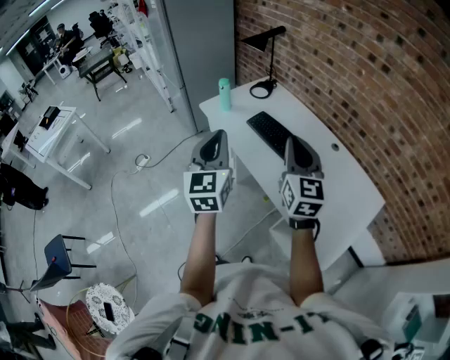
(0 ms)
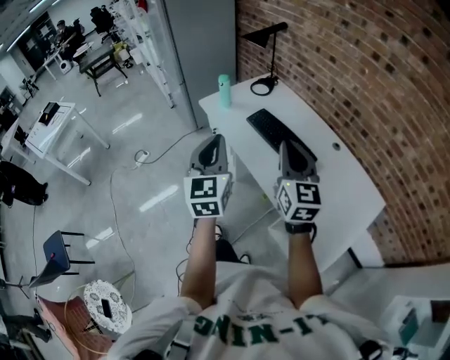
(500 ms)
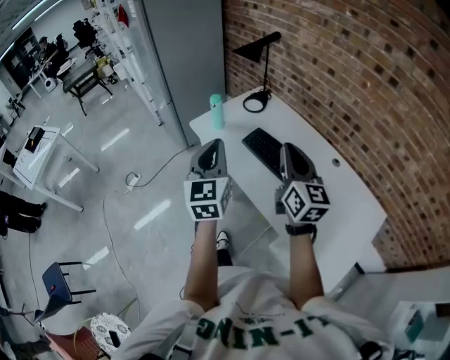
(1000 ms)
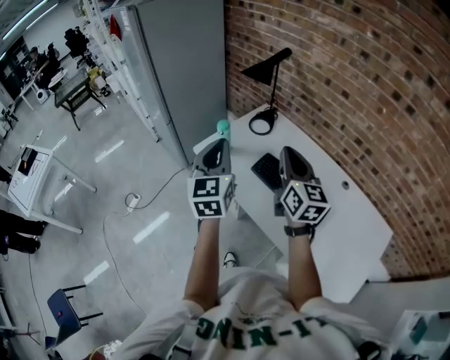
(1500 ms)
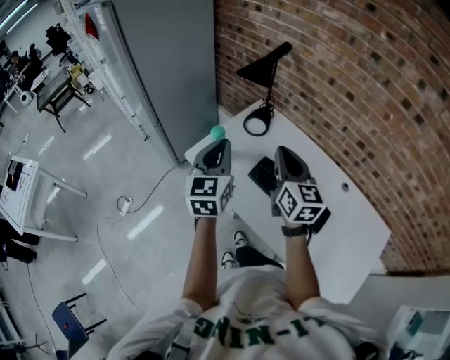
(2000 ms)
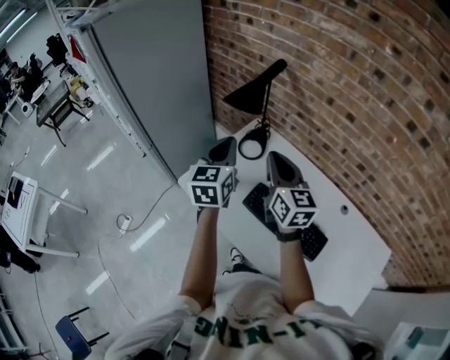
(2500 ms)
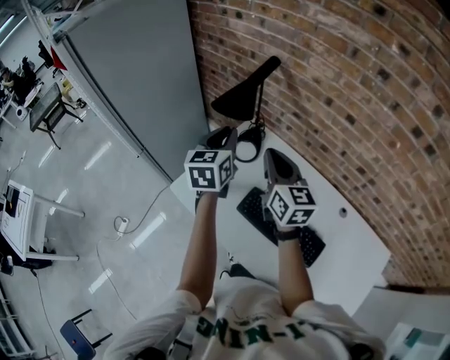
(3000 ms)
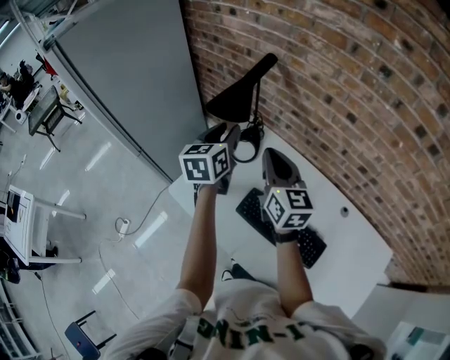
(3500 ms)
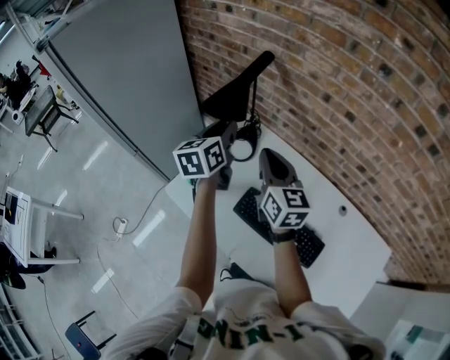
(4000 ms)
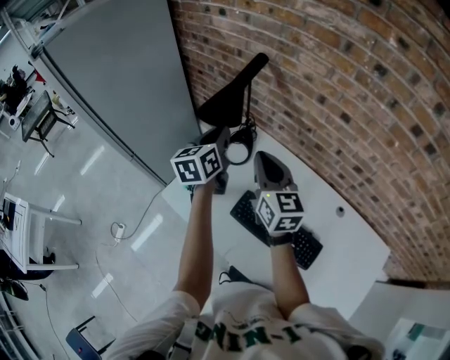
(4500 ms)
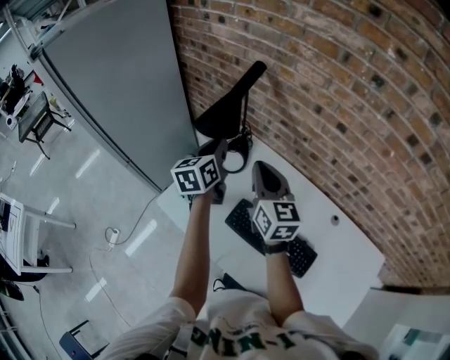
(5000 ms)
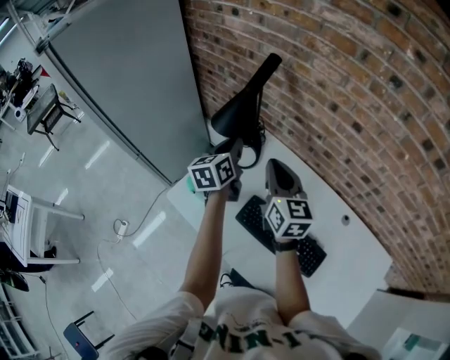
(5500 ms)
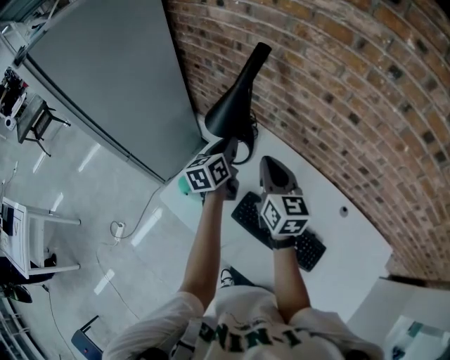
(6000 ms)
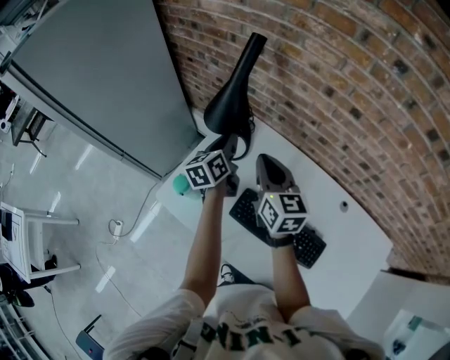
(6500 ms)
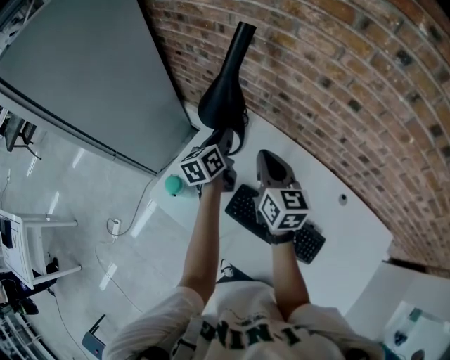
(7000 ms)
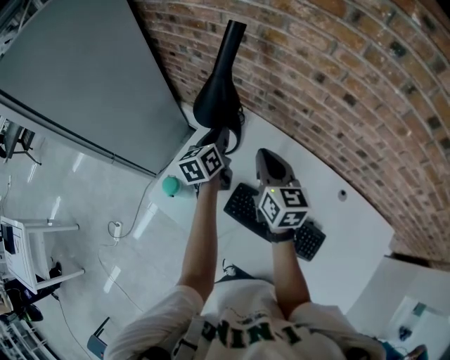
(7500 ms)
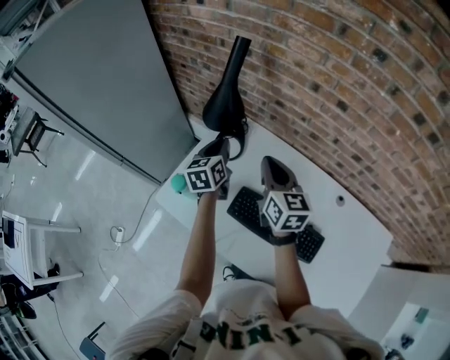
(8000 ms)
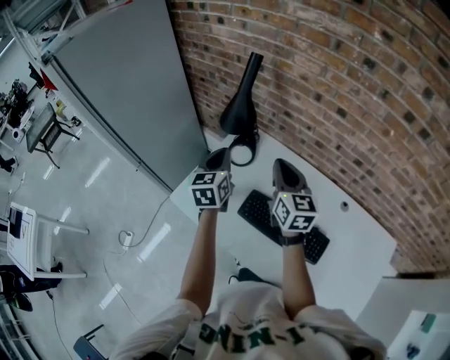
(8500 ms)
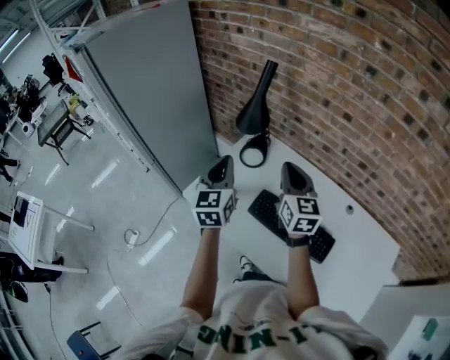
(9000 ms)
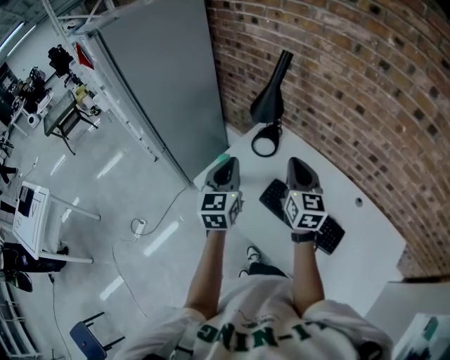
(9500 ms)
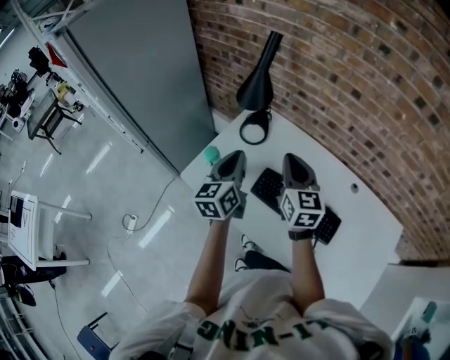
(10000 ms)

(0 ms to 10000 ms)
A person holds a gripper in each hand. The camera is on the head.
0 ms - 2000 ms: The two grippers go roughly 35 cm forward.
2000 ms - 4000 ms: Both grippers travel together forward, about 20 cm. The left gripper swivels roughly 30 degrees, and opens its fingers.
4000 ms - 6000 ms: The right gripper changes place by some 5 cm, while the left gripper travels downward by roughly 10 cm.
8000 ms - 10000 ms: The right gripper is displaced backward by some 10 cm; the left gripper is displaced backward and upward by approximately 20 cm.

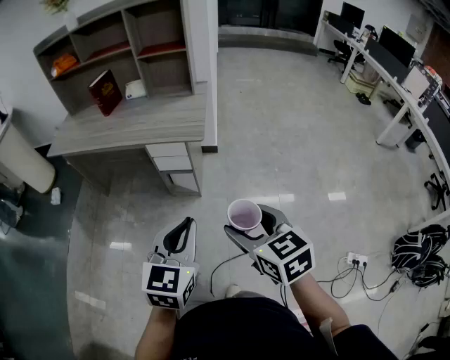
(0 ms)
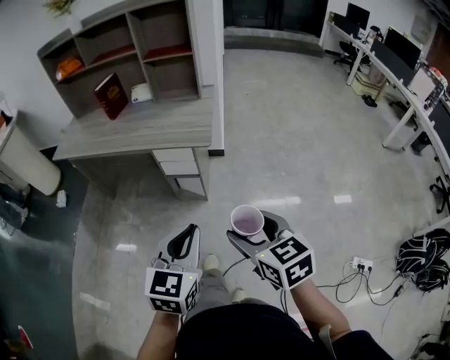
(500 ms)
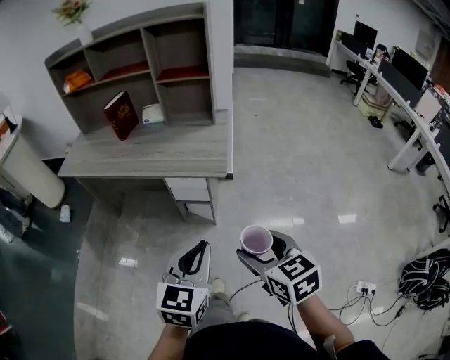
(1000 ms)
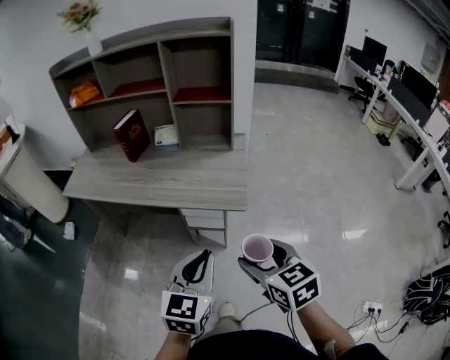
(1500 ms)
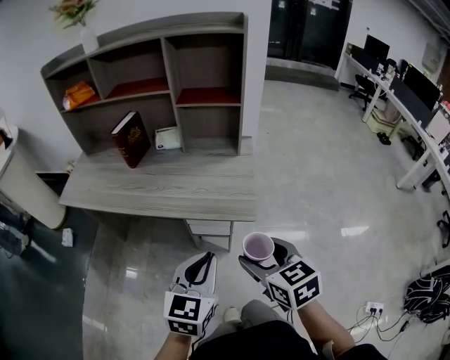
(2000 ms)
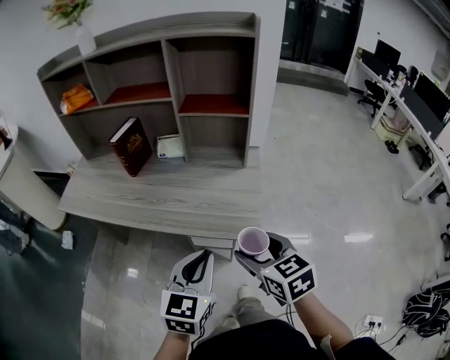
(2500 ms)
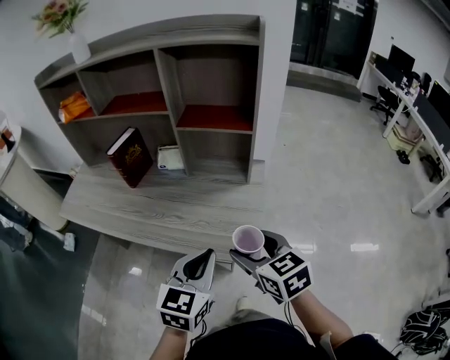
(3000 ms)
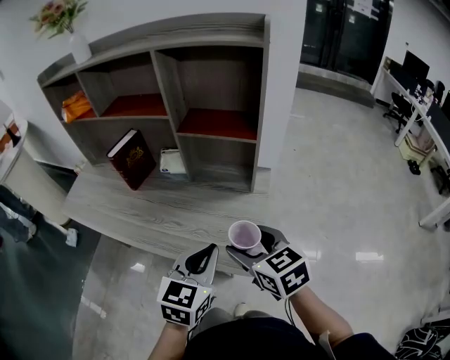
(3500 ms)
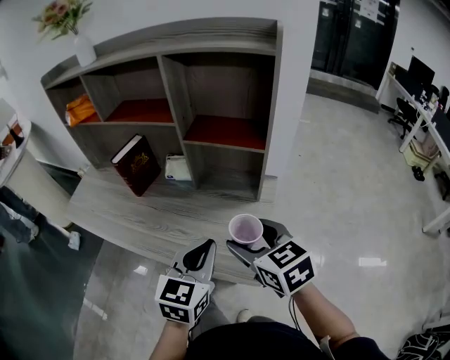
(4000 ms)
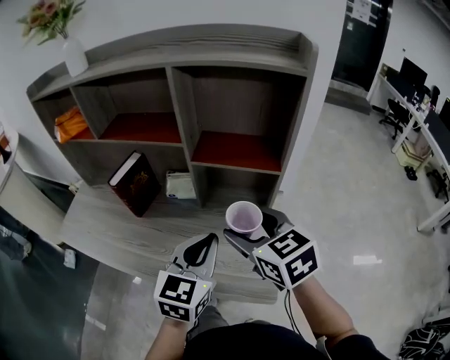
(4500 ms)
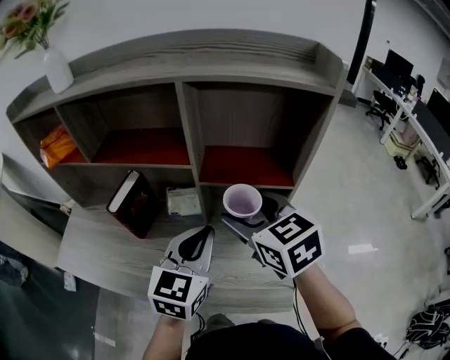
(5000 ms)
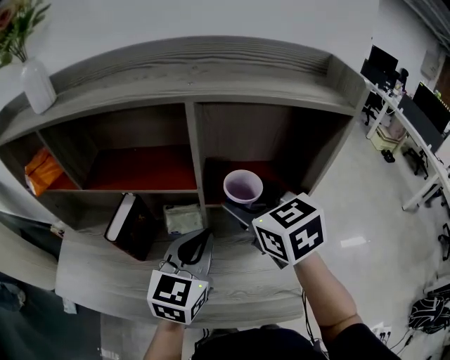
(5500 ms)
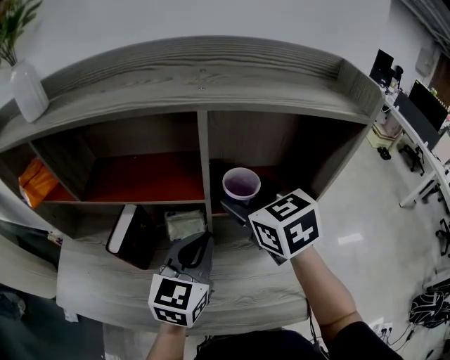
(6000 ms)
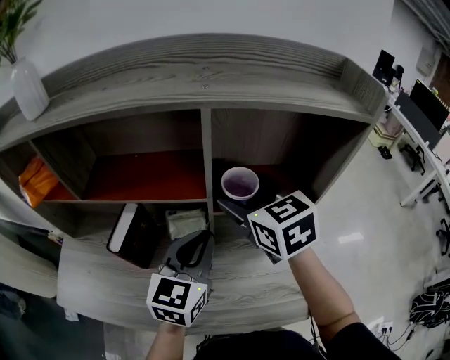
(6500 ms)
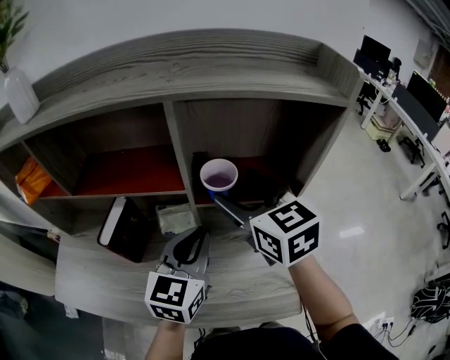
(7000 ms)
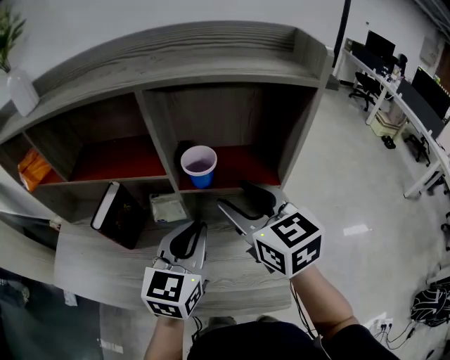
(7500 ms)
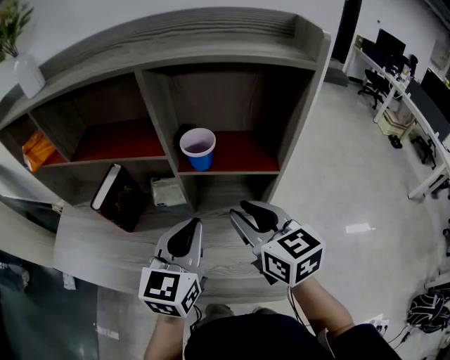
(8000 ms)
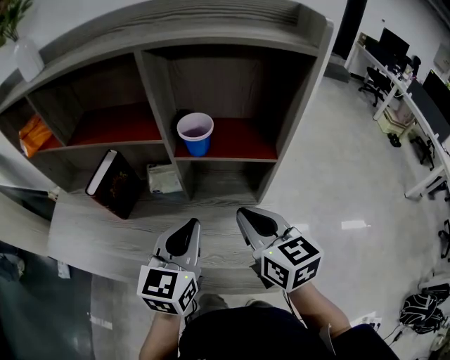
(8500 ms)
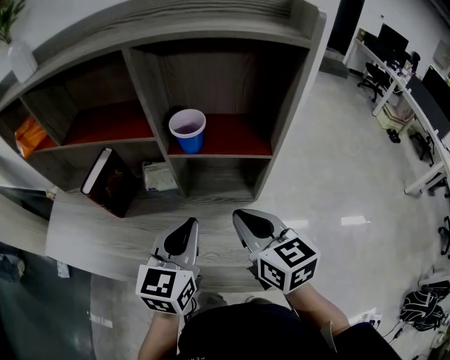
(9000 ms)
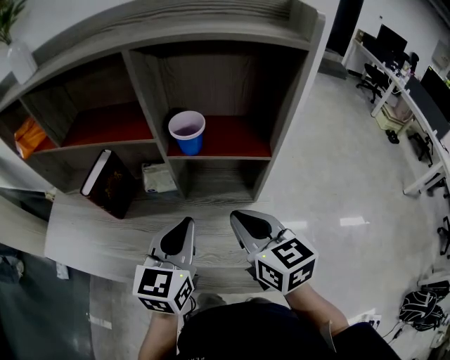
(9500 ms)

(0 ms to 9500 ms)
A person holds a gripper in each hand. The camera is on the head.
0 ms - 2000 ms: The left gripper shifts approximately 25 cm forward. Meanwhile the right gripper heads forward and to the left, covering roughly 30 cm.
2000 ms - 4000 ms: Both grippers travel together forward, approximately 25 cm.
4000 ms - 5500 ms: The right gripper goes some 30 cm forward and upward. Meanwhile the left gripper shifts about 25 cm forward and to the left.
5500 ms - 7500 ms: The right gripper travels to the right by some 5 cm, while the left gripper moves some 5 cm.
7500 ms - 9500 ms: The left gripper is displaced backward by approximately 5 cm. The right gripper goes some 15 cm downward and backward, and closes its fingers.

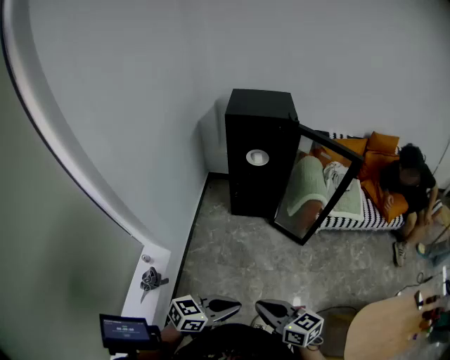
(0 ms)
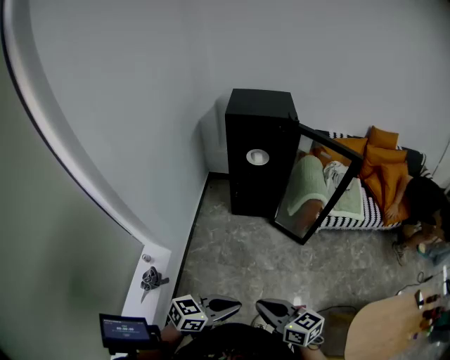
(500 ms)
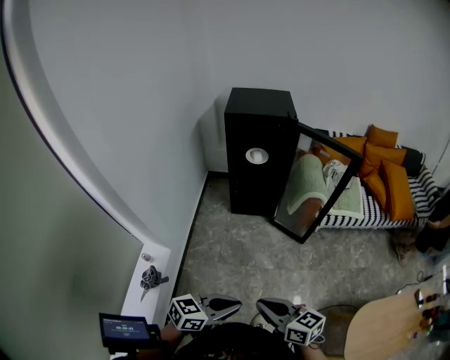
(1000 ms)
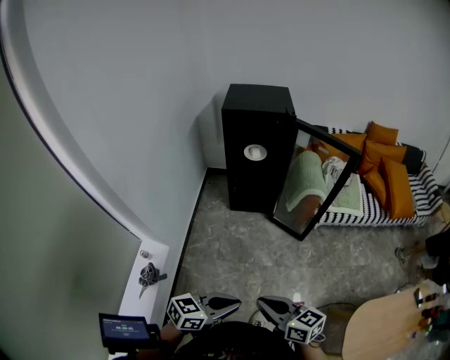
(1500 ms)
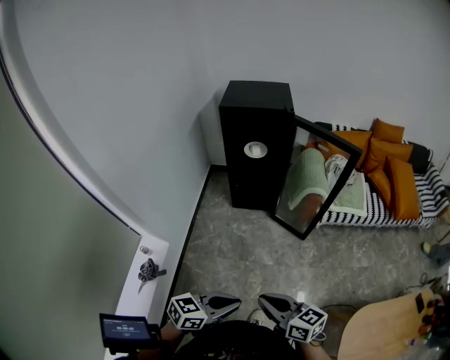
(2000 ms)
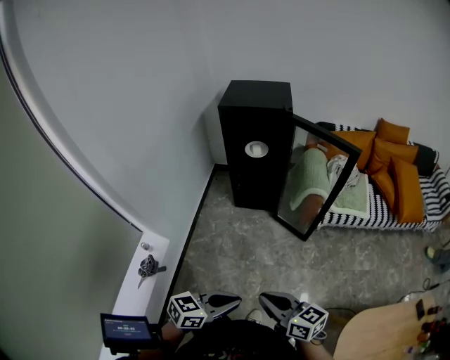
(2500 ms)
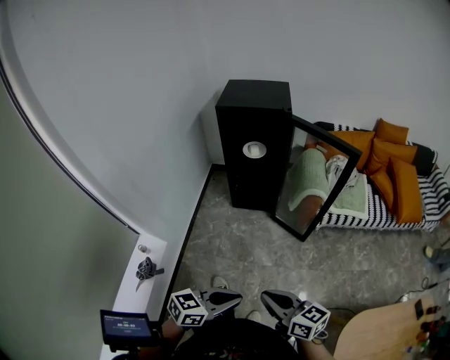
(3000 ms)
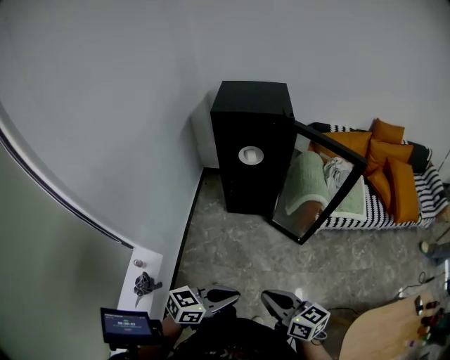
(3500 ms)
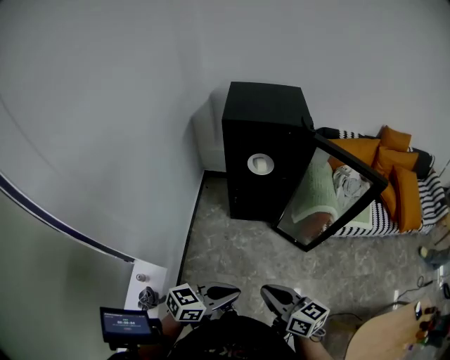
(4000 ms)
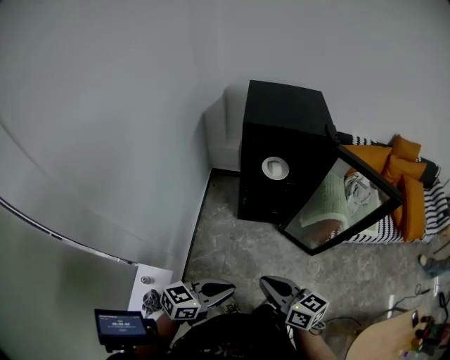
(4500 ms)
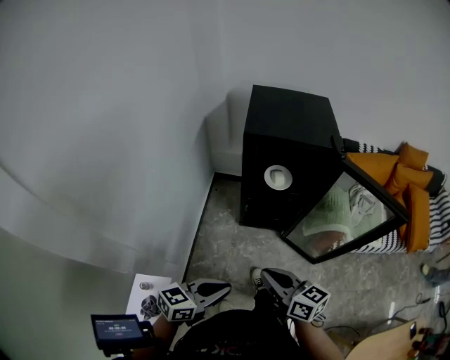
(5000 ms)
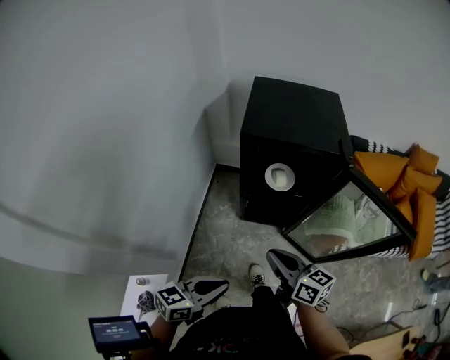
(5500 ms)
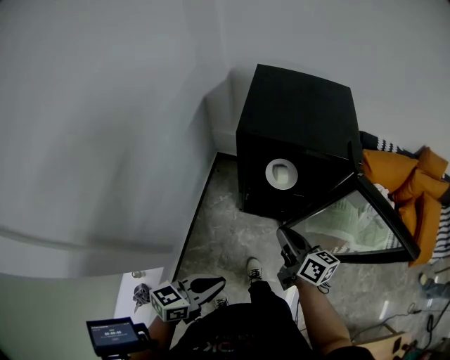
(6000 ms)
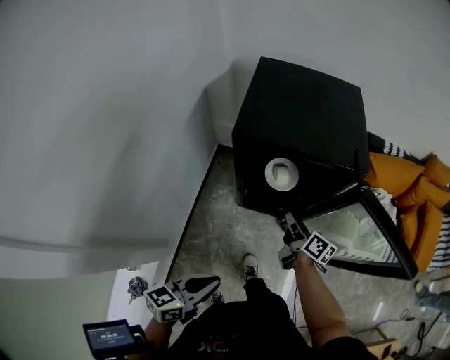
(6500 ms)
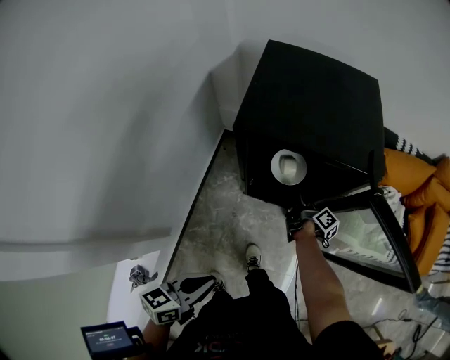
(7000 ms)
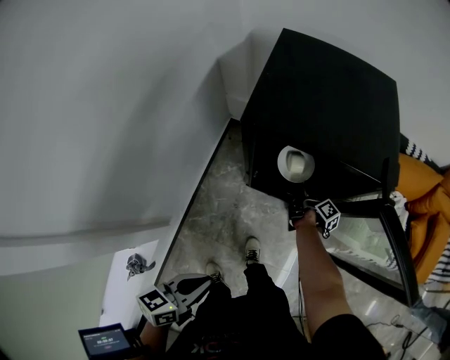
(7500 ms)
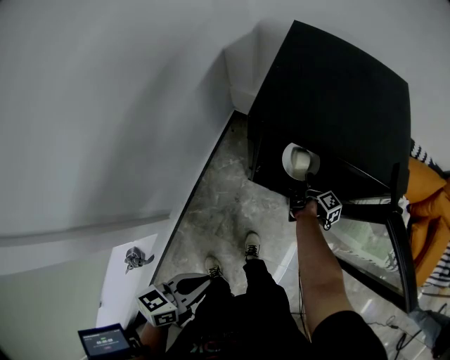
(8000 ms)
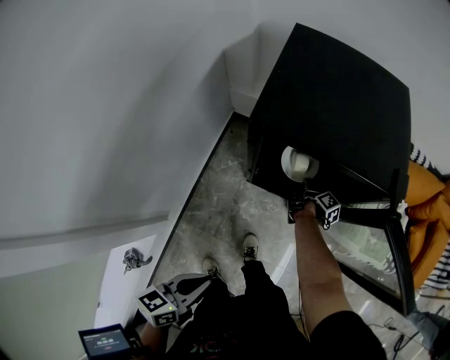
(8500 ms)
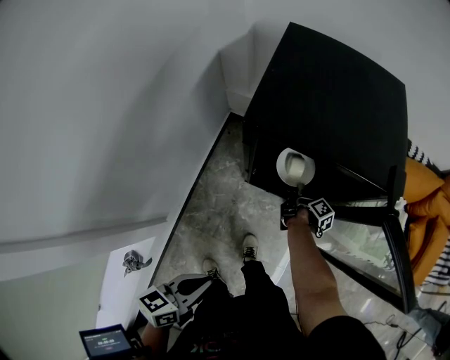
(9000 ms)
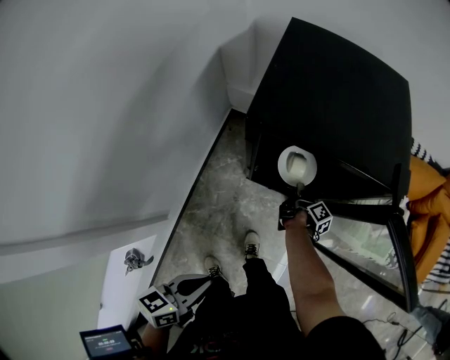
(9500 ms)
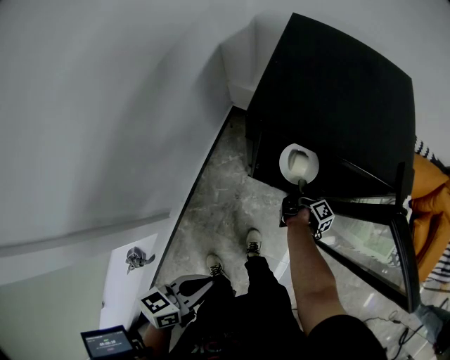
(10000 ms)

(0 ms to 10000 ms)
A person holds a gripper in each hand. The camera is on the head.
0 ms - 2000 ms: Both grippers move to the right, some 5 cm.
2000 ms - 4000 ms: Both grippers travel together forward and to the left, about 20 cm.
4000 ms - 6000 ms: The right gripper is displaced forward by about 35 cm. The left gripper moves forward, some 20 cm, and swivels some 20 degrees.
6000 ms - 8000 ms: The left gripper swivels approximately 20 degrees. The right gripper shifts about 35 cm downward and forward, swivels about 60 degrees, and opens its fingers.
8000 ms - 10000 ms: The right gripper closes up.
